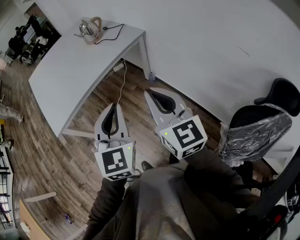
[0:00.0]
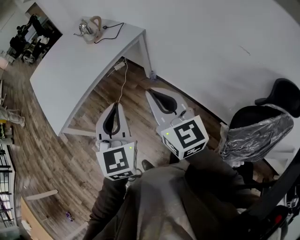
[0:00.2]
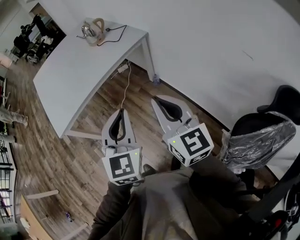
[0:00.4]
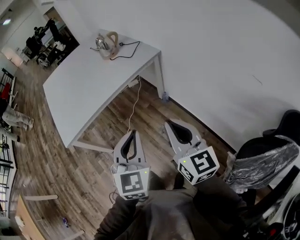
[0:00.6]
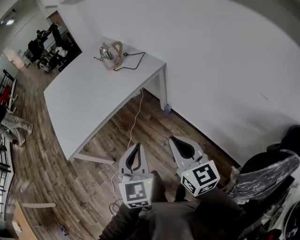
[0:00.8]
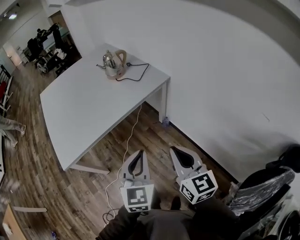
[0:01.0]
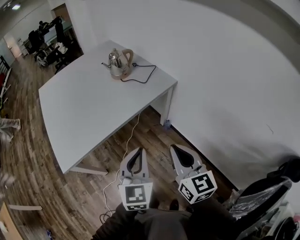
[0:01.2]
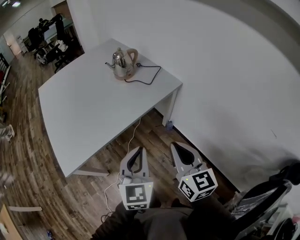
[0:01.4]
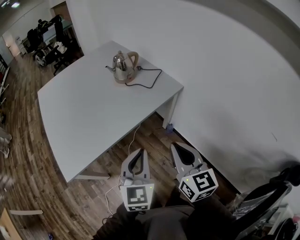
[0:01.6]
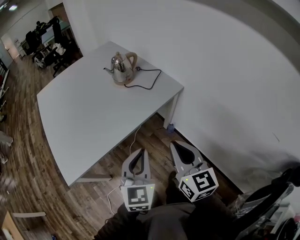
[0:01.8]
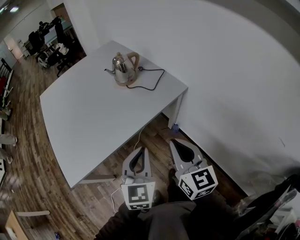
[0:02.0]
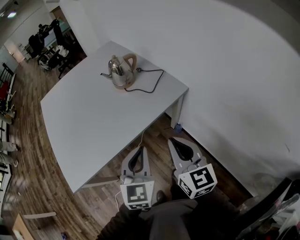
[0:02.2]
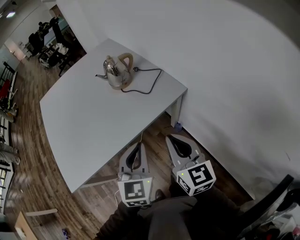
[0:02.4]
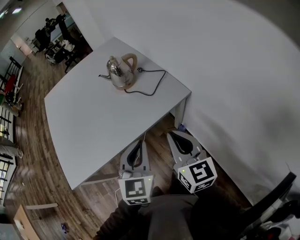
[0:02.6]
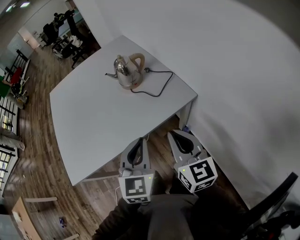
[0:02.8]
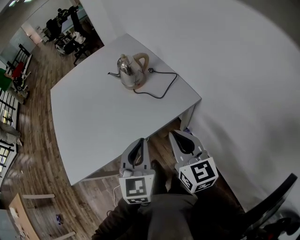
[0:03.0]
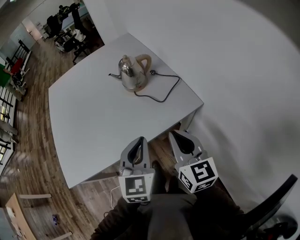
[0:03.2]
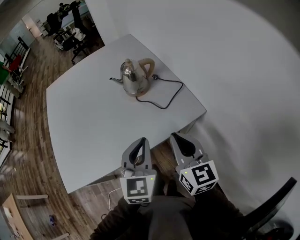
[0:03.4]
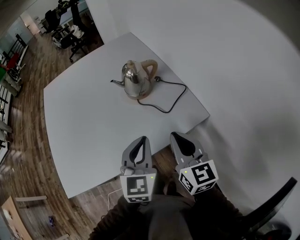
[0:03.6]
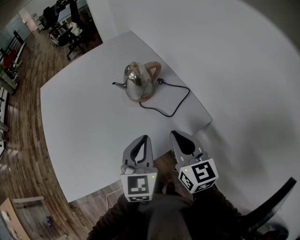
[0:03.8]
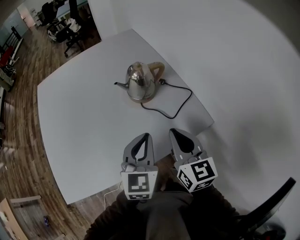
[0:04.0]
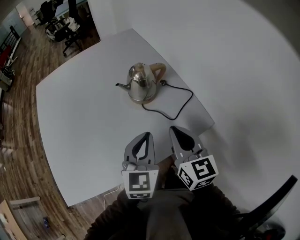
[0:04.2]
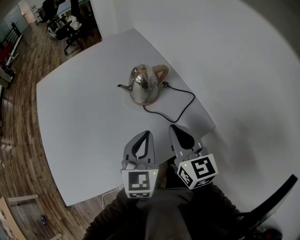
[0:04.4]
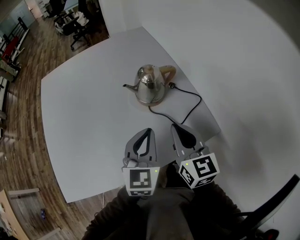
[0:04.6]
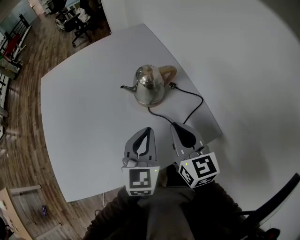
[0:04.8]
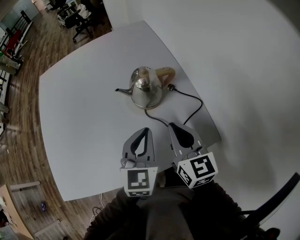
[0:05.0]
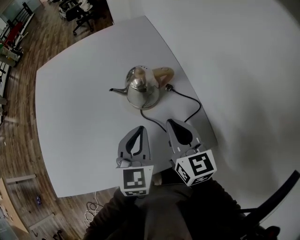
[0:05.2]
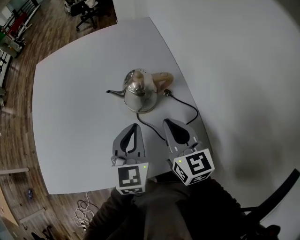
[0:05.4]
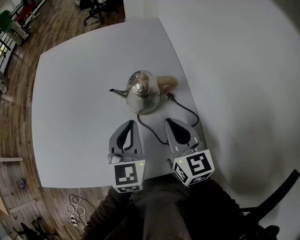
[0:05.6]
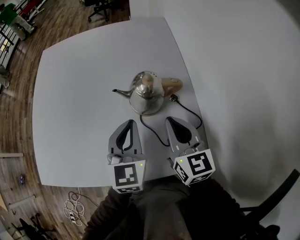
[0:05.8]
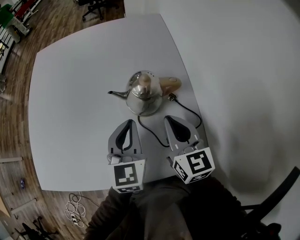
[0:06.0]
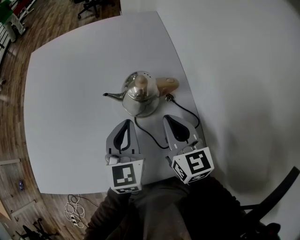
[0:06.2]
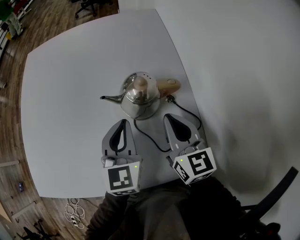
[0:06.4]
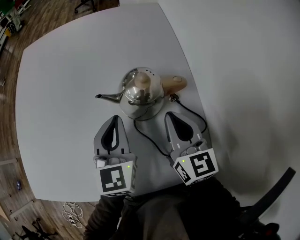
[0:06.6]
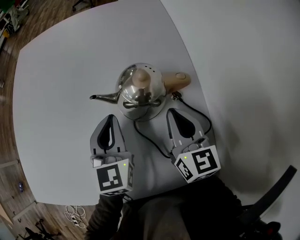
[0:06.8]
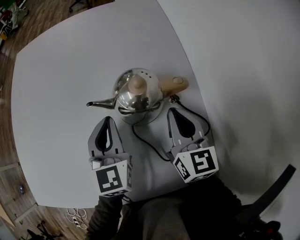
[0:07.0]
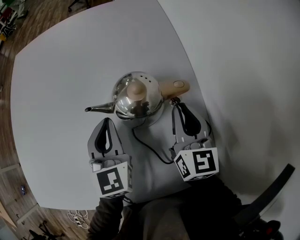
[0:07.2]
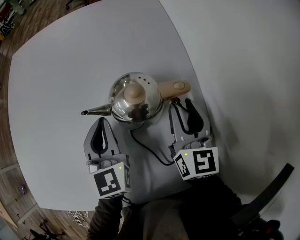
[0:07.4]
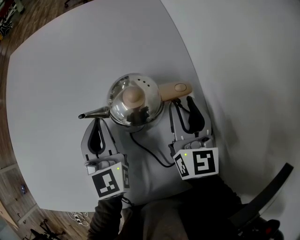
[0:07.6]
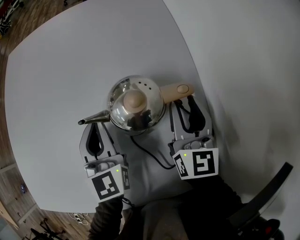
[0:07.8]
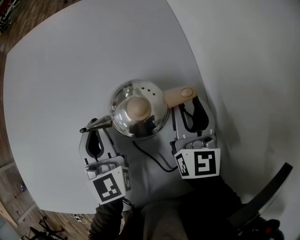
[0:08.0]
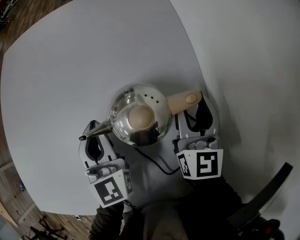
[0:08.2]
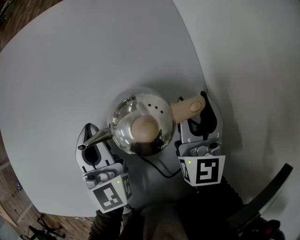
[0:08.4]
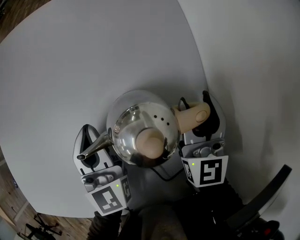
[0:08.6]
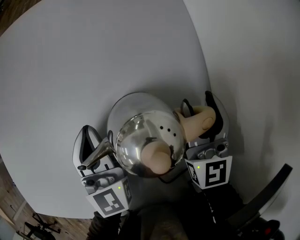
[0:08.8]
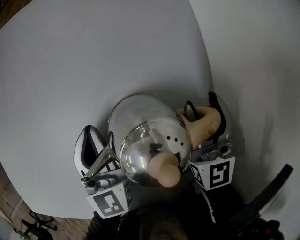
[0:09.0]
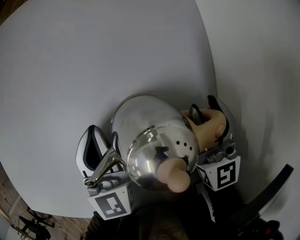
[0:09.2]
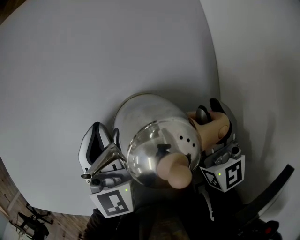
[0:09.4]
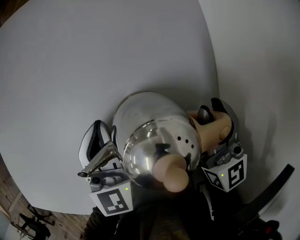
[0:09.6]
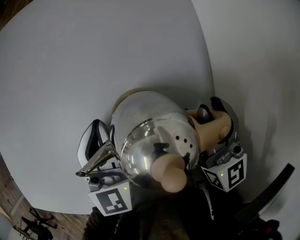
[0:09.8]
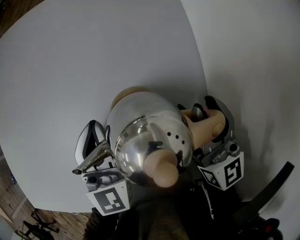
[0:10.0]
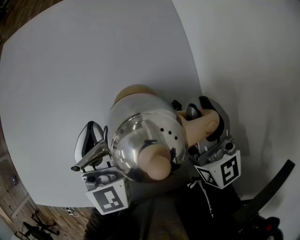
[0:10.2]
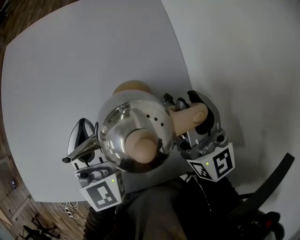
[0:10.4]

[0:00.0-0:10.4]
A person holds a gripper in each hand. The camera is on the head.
0:00.0 to 0:01.4: Both grippers travel together forward, roughly 20 cm.
0:01.4 to 0:03.0: The grippers both shift forward by approximately 20 cm.
0:03.0 to 0:04.4: Both grippers move forward, some 20 cm.
0:04.4 to 0:06.0: The right gripper heads forward and downward, covering approximately 15 cm. The left gripper goes approximately 15 cm forward, and turns by some 30 degrees.
0:06.0 to 0:07.4: The right gripper heads forward, to the right and downward, covering some 10 cm, and opens its fingers. The left gripper travels forward and downward by roughly 10 cm.
0:07.4 to 0:09.0: The right gripper moves forward, some 5 cm.
0:09.0 to 0:10.4: The left gripper moves upward, some 10 cm, while the right gripper goes some 10 cm backward and upward.

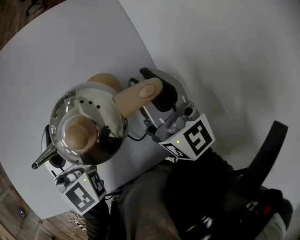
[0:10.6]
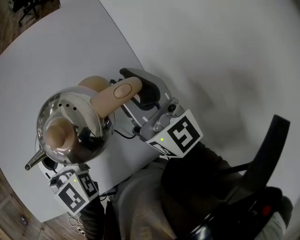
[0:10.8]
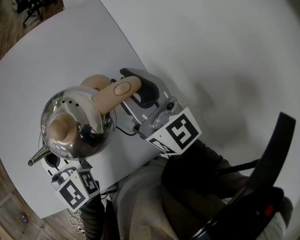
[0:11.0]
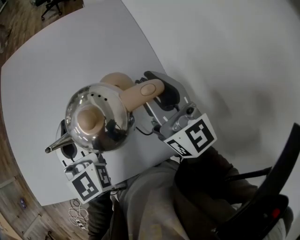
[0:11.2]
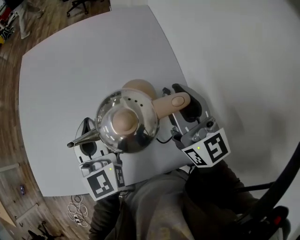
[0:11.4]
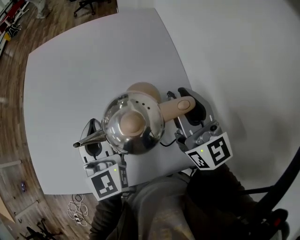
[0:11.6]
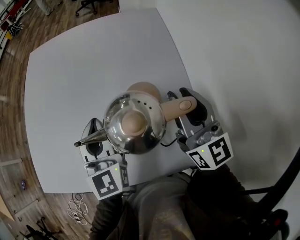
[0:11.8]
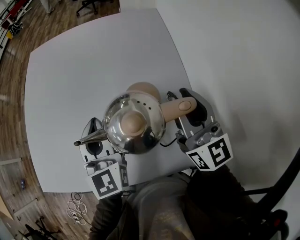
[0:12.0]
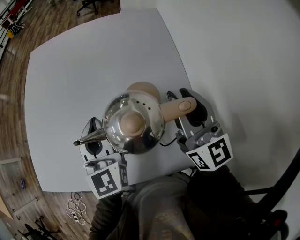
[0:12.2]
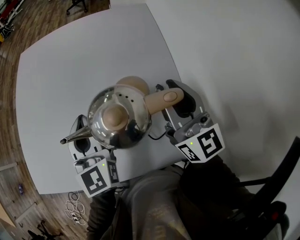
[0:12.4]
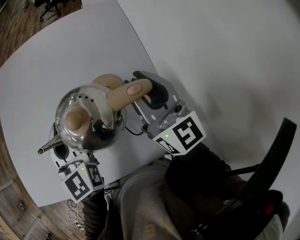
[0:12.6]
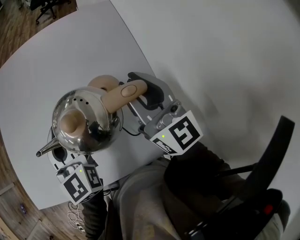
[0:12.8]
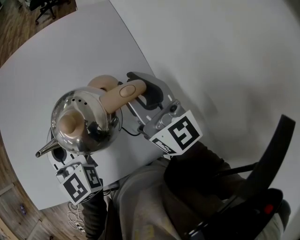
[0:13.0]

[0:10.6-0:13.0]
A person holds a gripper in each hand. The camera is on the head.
0:10.6 to 0:11.8: The grippers stay close to where they were, moving slightly.
0:11.8 to 0:13.0: Both grippers stay put.

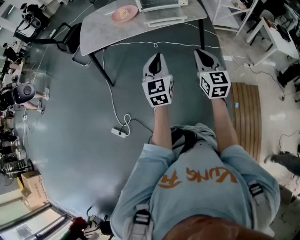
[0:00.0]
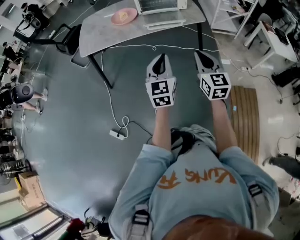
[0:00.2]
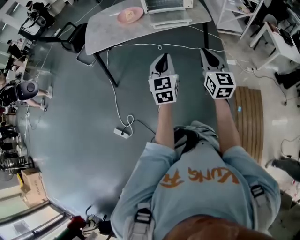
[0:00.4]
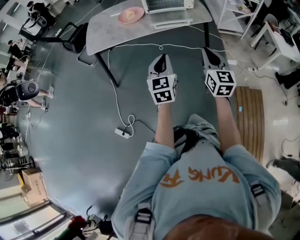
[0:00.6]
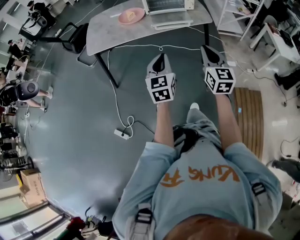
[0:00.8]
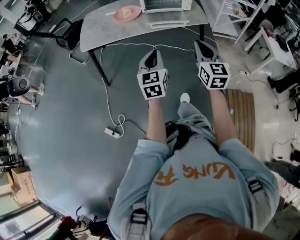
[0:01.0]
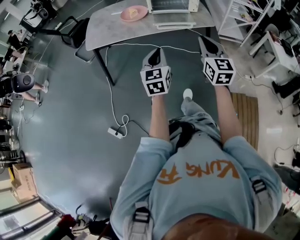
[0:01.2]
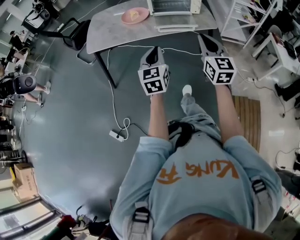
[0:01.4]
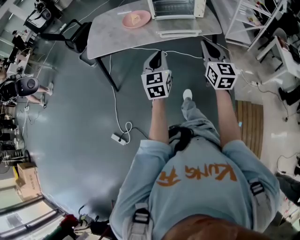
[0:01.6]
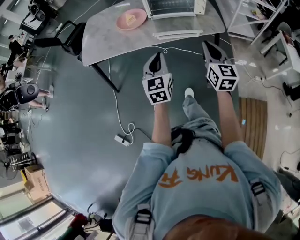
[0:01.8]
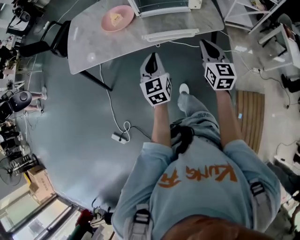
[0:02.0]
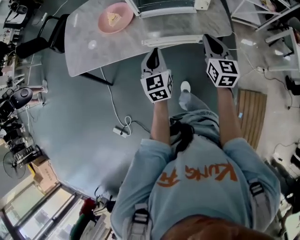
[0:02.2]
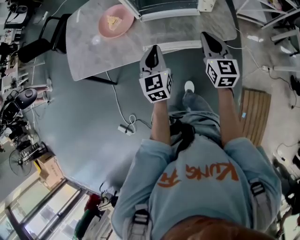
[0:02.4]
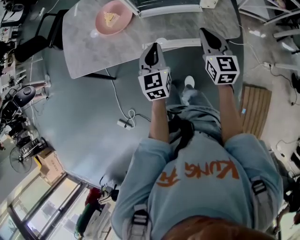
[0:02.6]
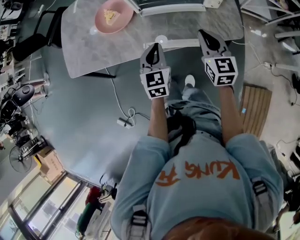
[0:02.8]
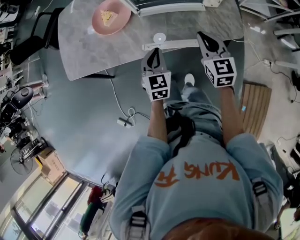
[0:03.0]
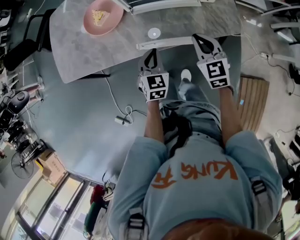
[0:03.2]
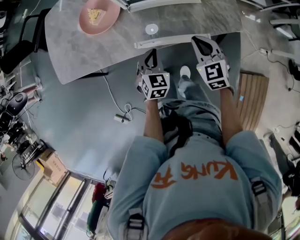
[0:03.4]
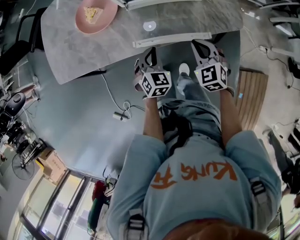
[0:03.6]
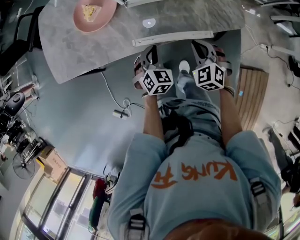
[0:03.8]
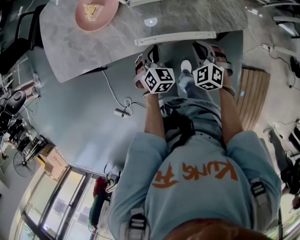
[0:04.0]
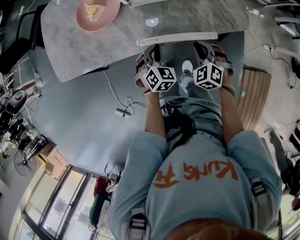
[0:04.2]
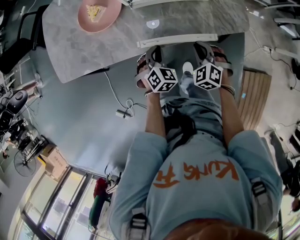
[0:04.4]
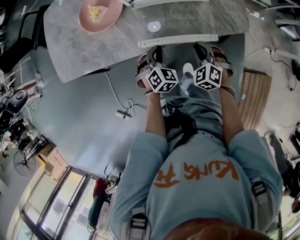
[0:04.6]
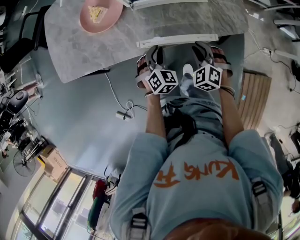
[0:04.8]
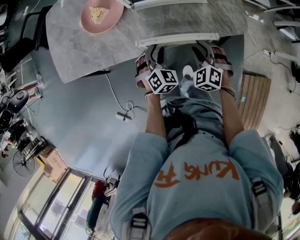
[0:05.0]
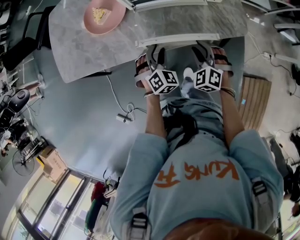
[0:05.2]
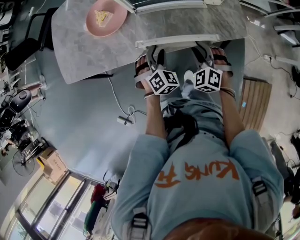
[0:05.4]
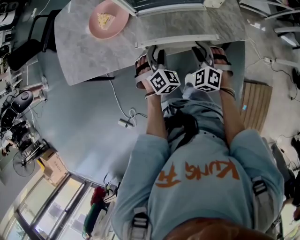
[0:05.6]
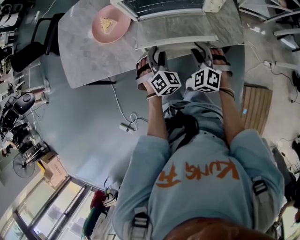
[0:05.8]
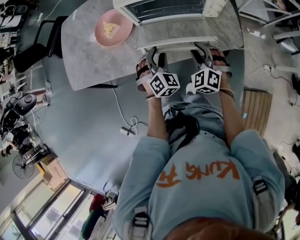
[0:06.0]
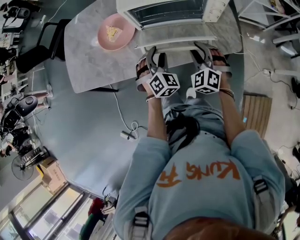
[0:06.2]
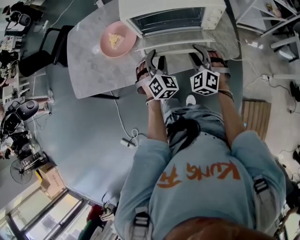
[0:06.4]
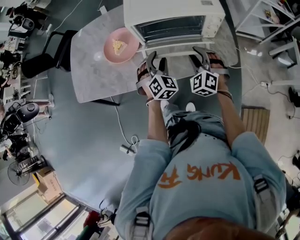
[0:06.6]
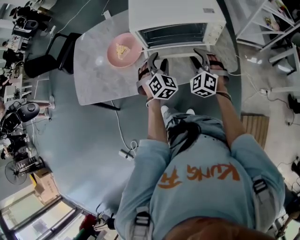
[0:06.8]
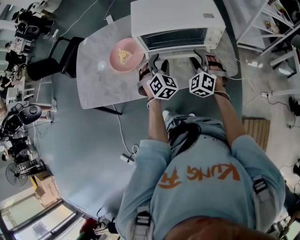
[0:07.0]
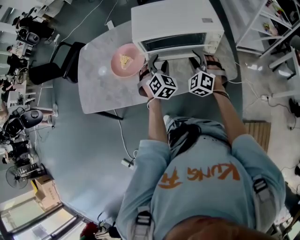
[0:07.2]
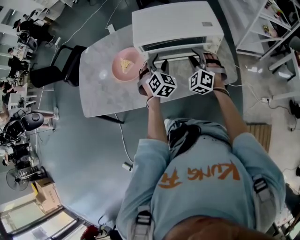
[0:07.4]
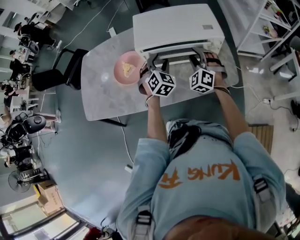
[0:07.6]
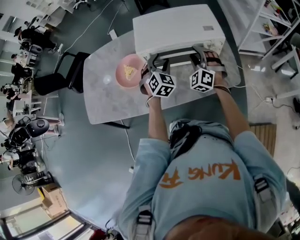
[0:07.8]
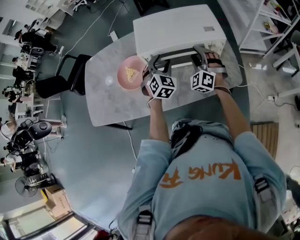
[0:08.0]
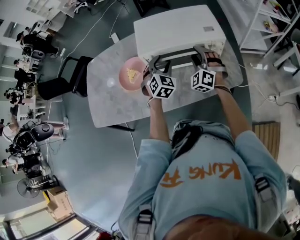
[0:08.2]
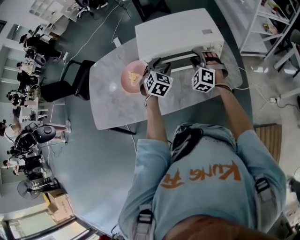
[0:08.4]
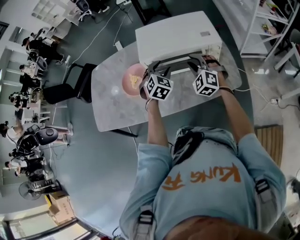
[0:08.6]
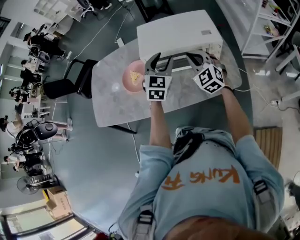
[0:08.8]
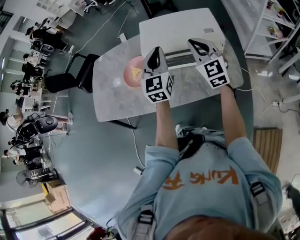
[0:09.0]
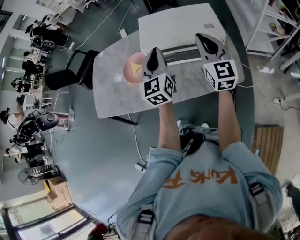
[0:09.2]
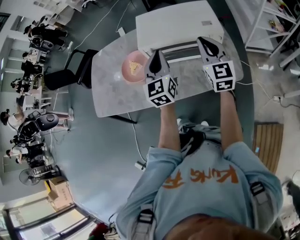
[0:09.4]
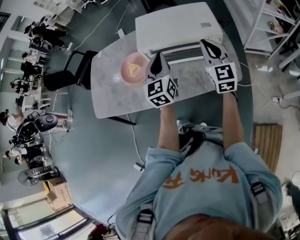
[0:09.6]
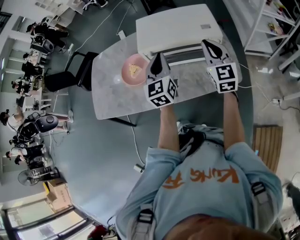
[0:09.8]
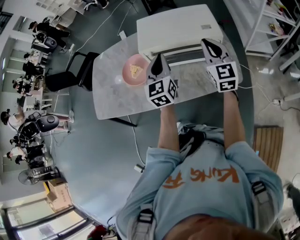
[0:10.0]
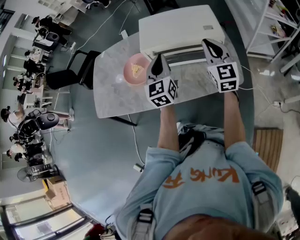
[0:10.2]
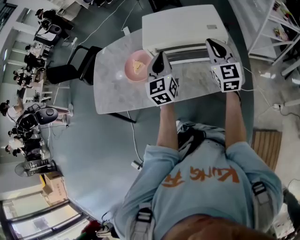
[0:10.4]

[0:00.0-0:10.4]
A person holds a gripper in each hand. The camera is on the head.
0:00.0 to 0:01.4: The right gripper travels forward by roughly 10 cm. Meanwhile the left gripper goes approximately 10 cm forward and to the left.
0:01.4 to 0:03.0: The two grippers travel together, forward, some 40 cm. Both grippers travel together downward, approximately 20 cm. The right gripper turns by roughly 20 degrees. The left gripper swivels approximately 30 degrees.
0:03.0 to 0:04.4: The grippers both shift downward by some 15 cm. The right gripper changes its angle by roughly 50 degrees, while the left gripper turns by roughly 40 degrees.
0:04.4 to 0:06.0: The right gripper shifts approximately 10 cm upward and forward, and opens its fingers; the left gripper travels upward by some 10 cm, and opens.
0:06.0 to 0:07.4: The grippers both shift forward and upward by roughly 15 cm.
0:07.4 to 0:09.0: The grippers both shift upward by some 15 cm. The left gripper angles its fingers upward, by some 30 degrees, and closes its fingers, while the right gripper swivels some 50 degrees, and closes.
0:09.0 to 0:10.4: The right gripper is displaced to the right by about 5 cm. Meanwhile the left gripper ends up about 5 cm from where it was.
